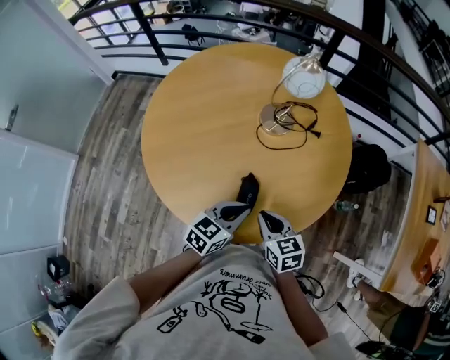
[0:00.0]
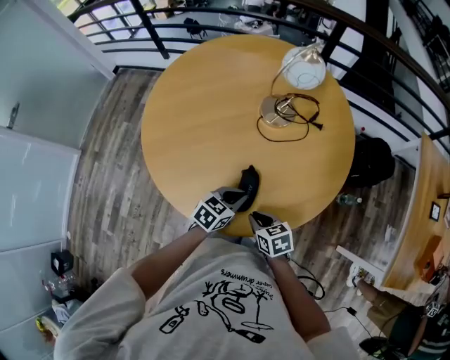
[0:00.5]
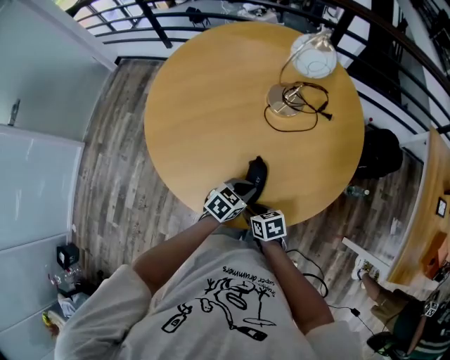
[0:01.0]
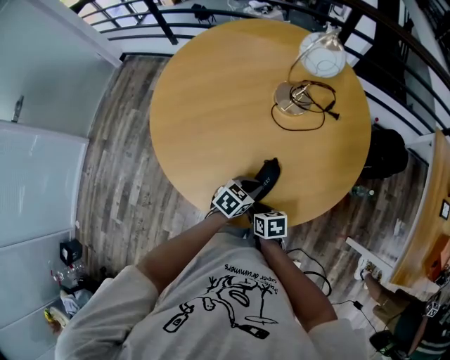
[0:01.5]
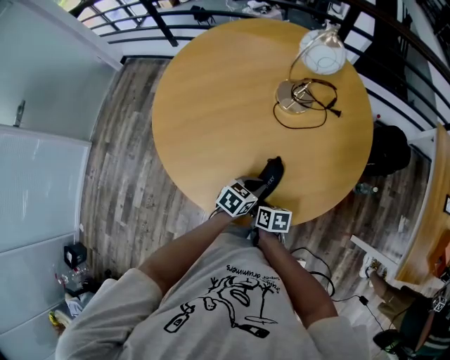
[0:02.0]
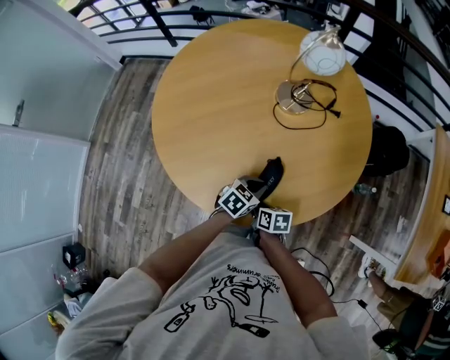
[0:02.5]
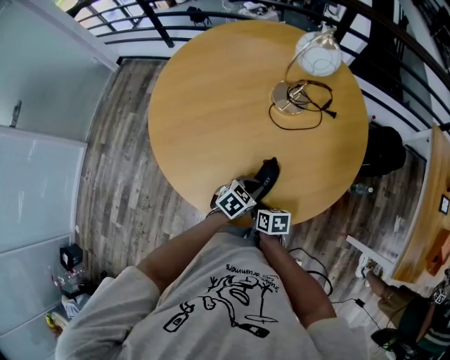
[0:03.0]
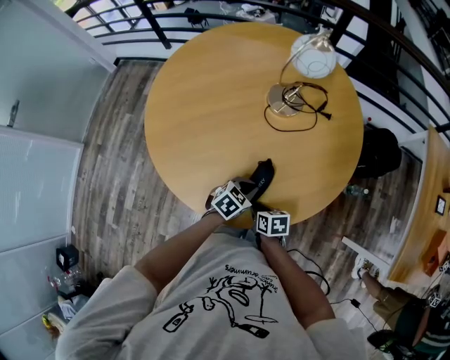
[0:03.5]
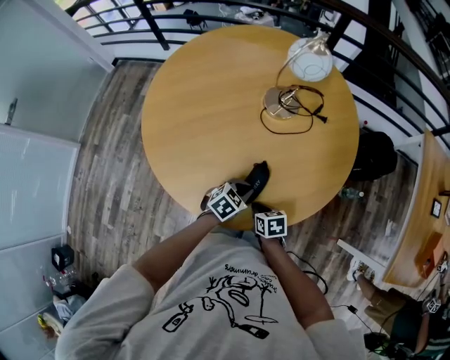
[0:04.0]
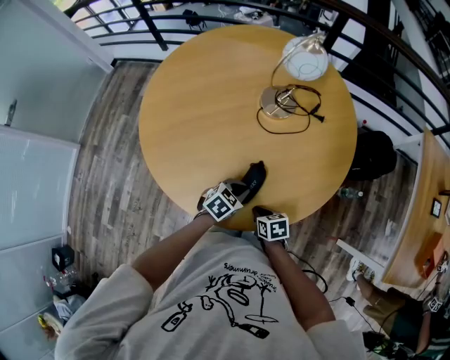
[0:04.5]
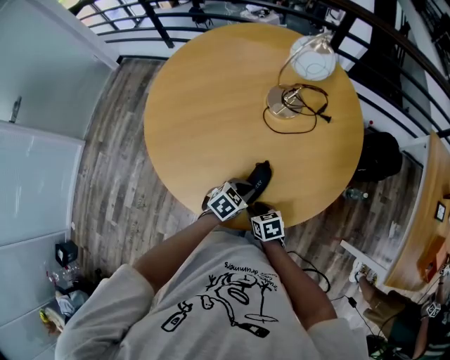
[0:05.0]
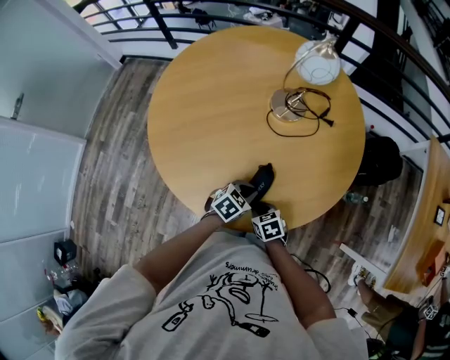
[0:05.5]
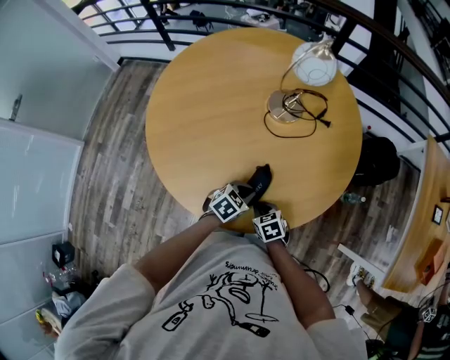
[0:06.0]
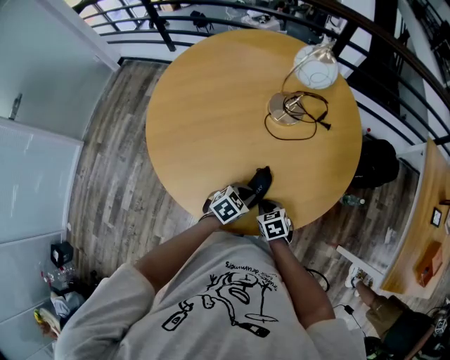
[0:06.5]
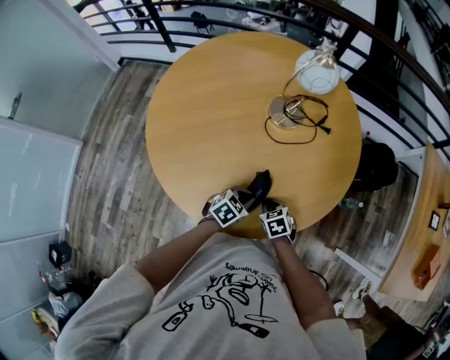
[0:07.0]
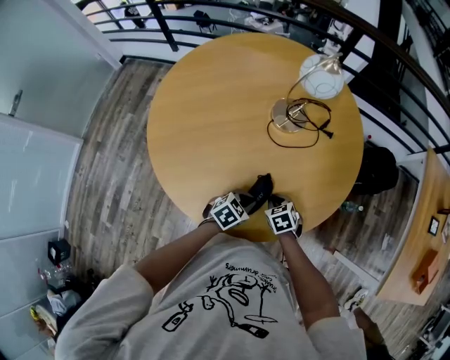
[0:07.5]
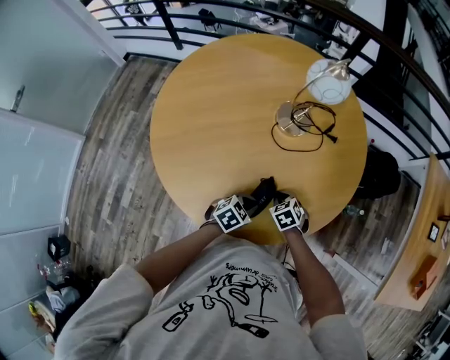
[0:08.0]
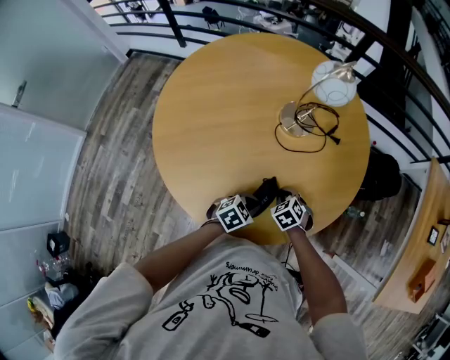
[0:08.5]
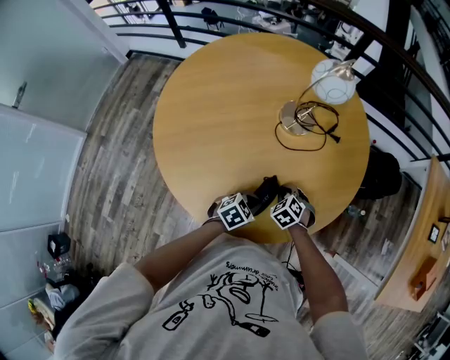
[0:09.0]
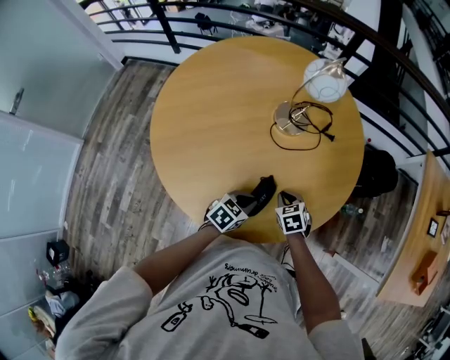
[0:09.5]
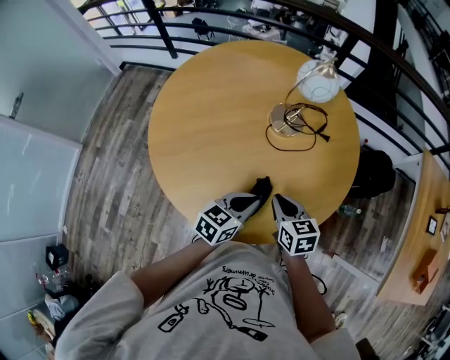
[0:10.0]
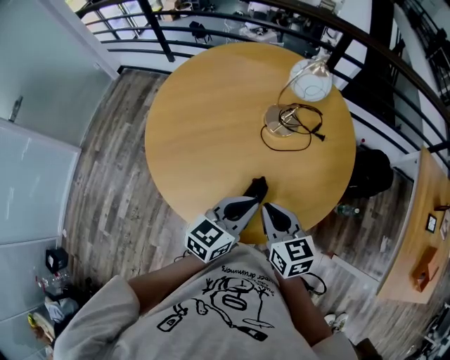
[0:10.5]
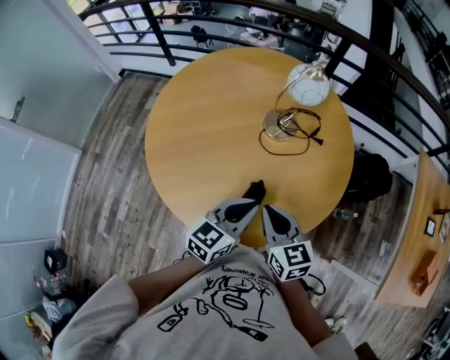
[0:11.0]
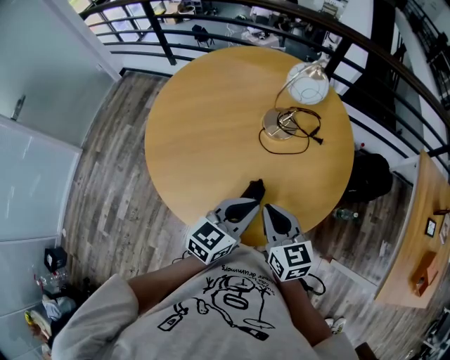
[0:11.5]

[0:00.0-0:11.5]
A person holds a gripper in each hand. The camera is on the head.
0:00.0 to 0:02.0: The two grippers go roughly 15 cm downward. The right gripper turns by some 40 degrees, and opens up.
0:02.0 to 0:04.0: The right gripper goes about 5 cm to the right, rotates roughly 20 degrees, and closes up.
0:04.0 to 0:06.0: The right gripper rotates some 20 degrees, and opens, then closes again.
0:06.0 to 0:07.5: The right gripper goes approximately 10 cm forward.
0:09.5 to 0:11.5: Both grippers move upward, some 20 cm. The left gripper swivels some 30 degrees; the right gripper tips its fingers upward by approximately 40 degrees.

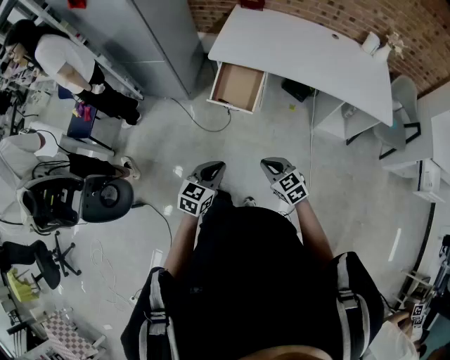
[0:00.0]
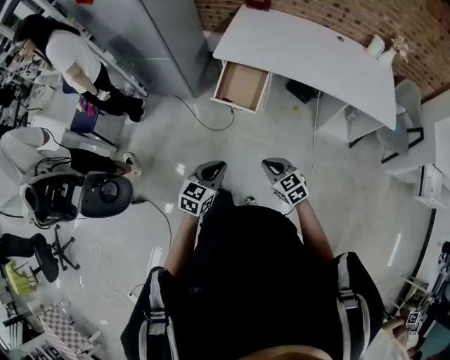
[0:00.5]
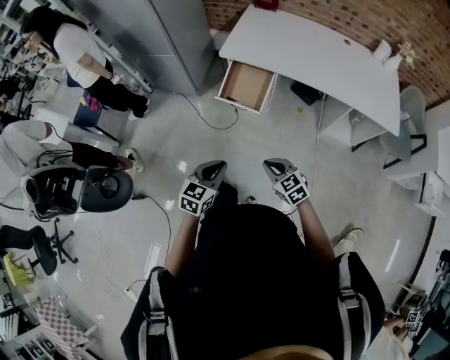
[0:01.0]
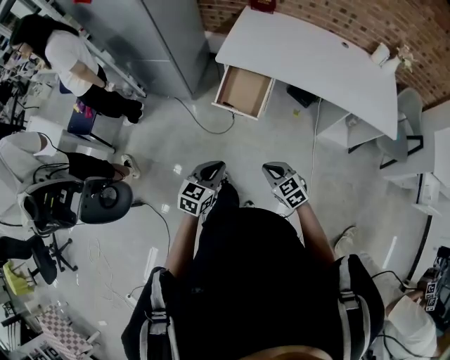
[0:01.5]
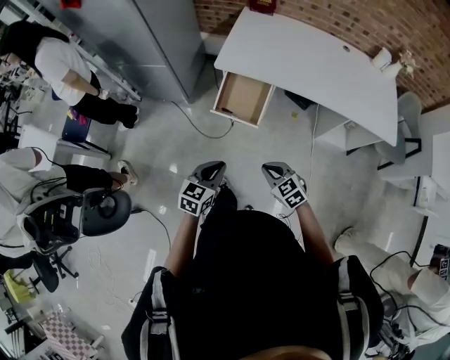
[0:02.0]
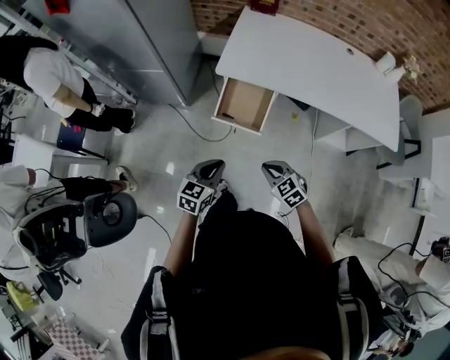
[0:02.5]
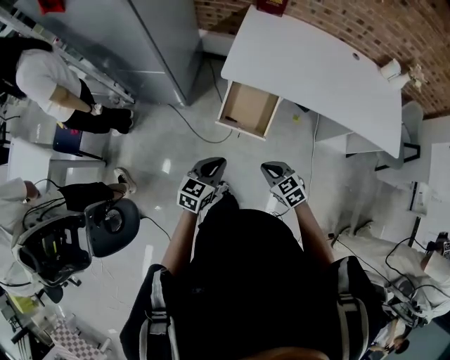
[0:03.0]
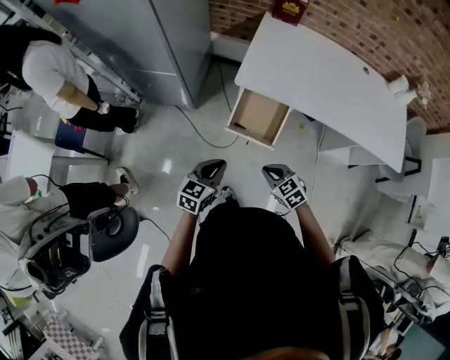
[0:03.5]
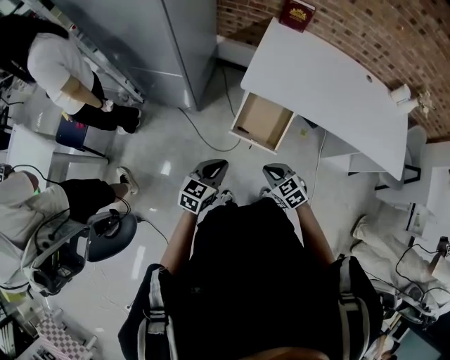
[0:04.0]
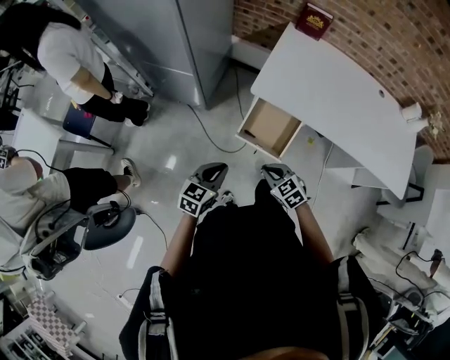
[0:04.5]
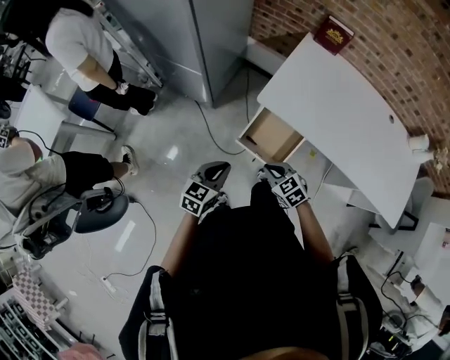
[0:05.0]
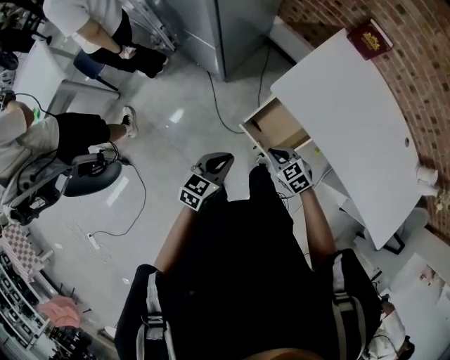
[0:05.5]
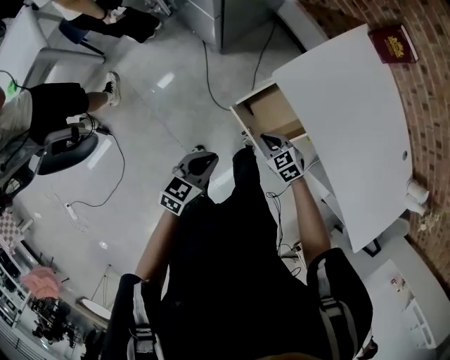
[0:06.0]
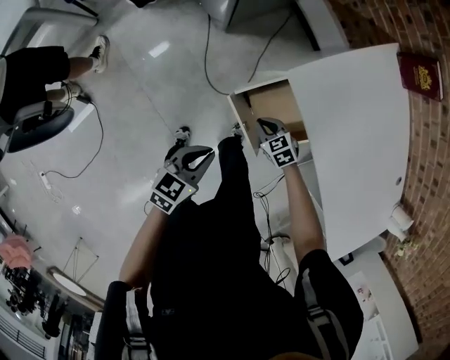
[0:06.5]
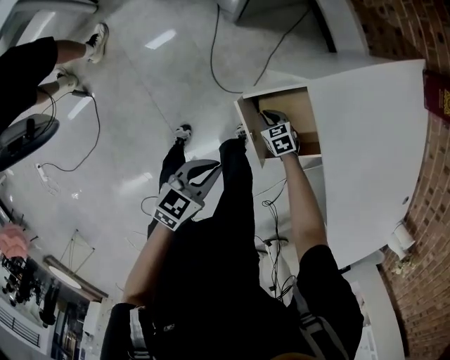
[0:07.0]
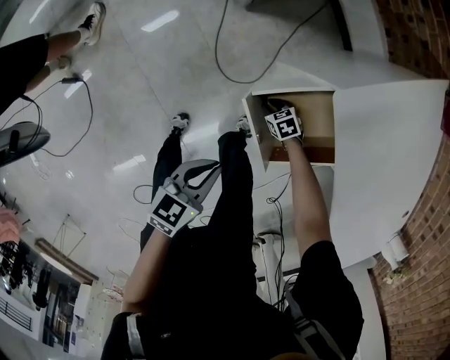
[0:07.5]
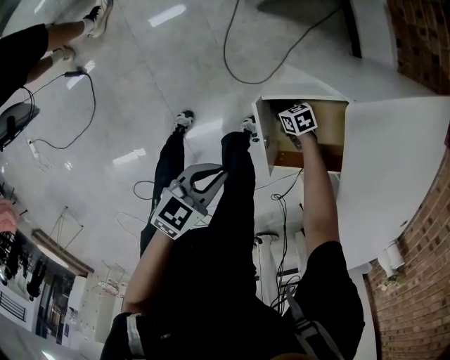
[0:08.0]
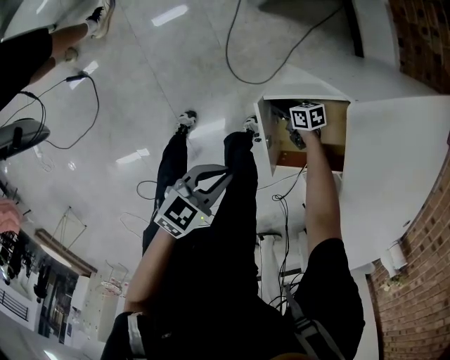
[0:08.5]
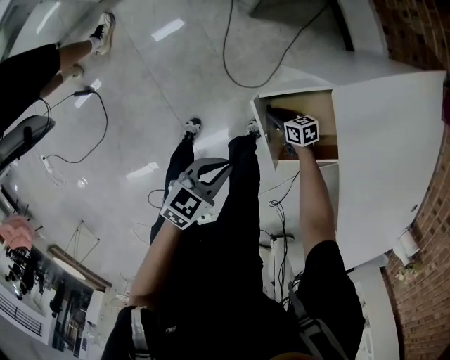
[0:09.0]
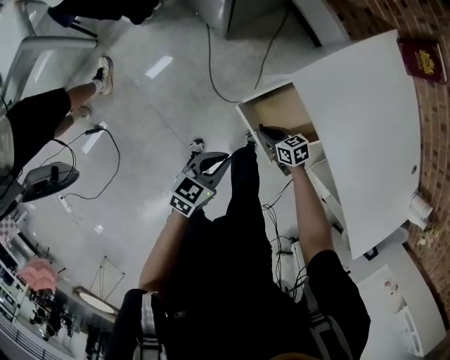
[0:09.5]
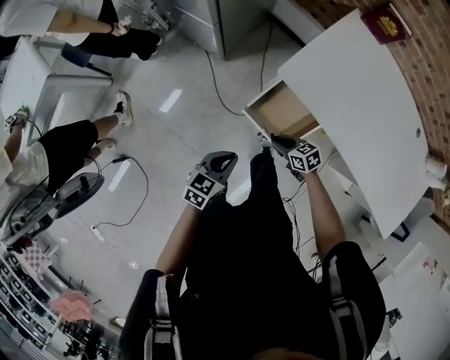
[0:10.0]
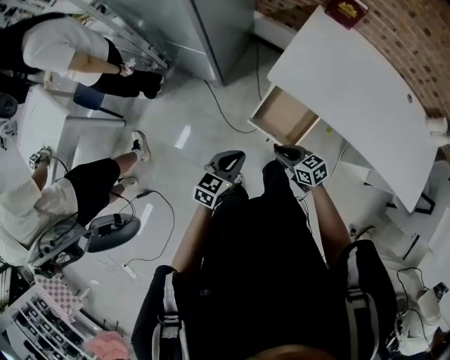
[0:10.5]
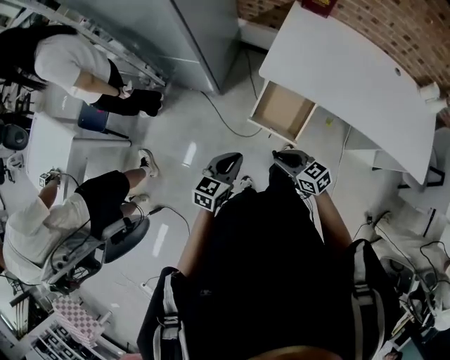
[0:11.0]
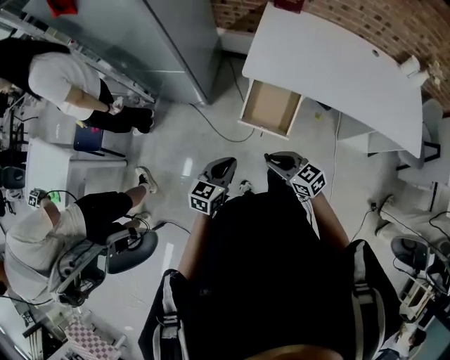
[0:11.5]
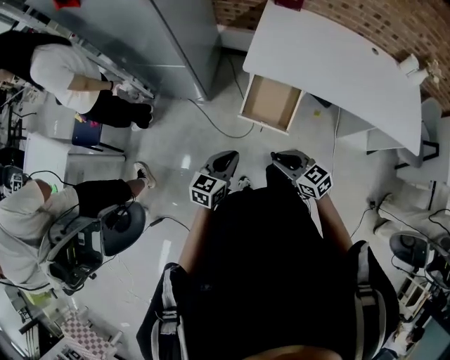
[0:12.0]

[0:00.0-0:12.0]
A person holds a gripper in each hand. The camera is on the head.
0:00.0 to 0:02.0: The grippers both shift forward by approximately 10 cm.
0:02.0 to 0:04.0: The two grippers go approximately 20 cm forward and to the left.
0:04.0 to 0:06.0: The right gripper ends up approximately 20 cm from where it was, and swivels roughly 30 degrees. The left gripper changes place by some 10 cm, and changes its angle by some 30 degrees.
0:06.0 to 0:08.0: The left gripper moves downward, about 15 cm, while the right gripper goes about 35 cm downward, and swivels roughly 30 degrees.
0:08.0 to 0:10.0: The left gripper goes some 15 cm upward, and swivels about 30 degrees. The right gripper moves upward, some 30 cm, and turns by some 40 degrees.
0:10.0 to 0:12.0: The left gripper is displaced upward, backward and to the left by roughly 15 cm. The right gripper heads upward, backward and to the left, covering some 30 cm, and rotates some 30 degrees.

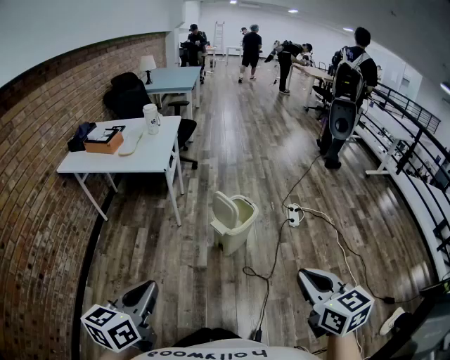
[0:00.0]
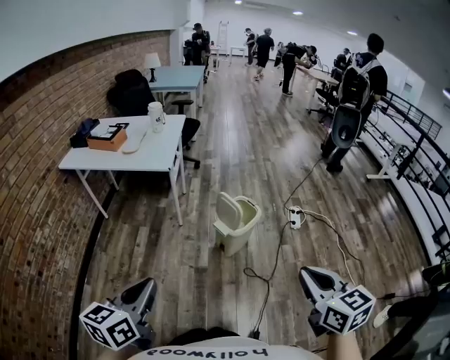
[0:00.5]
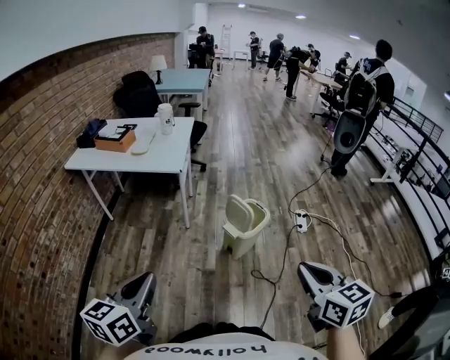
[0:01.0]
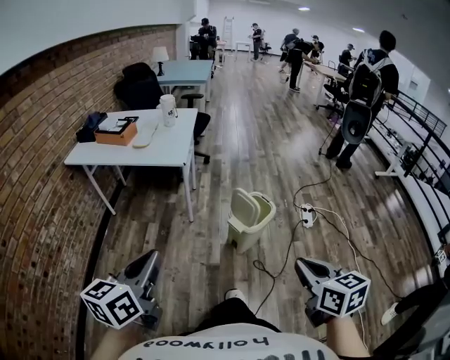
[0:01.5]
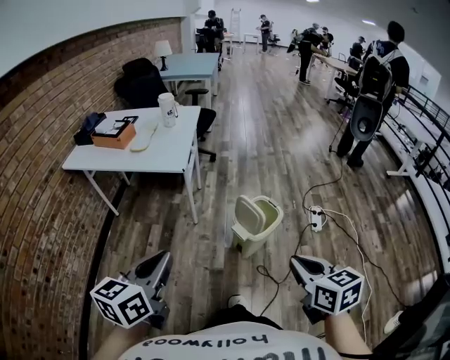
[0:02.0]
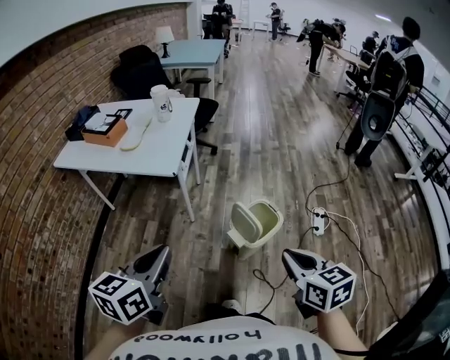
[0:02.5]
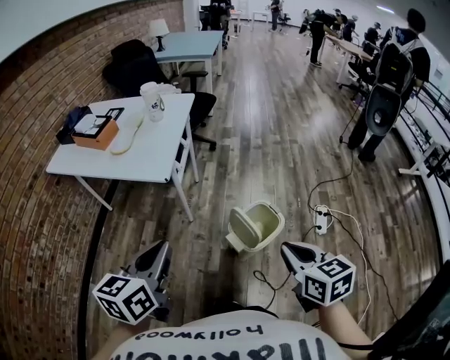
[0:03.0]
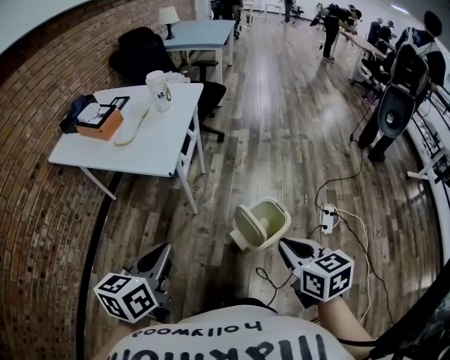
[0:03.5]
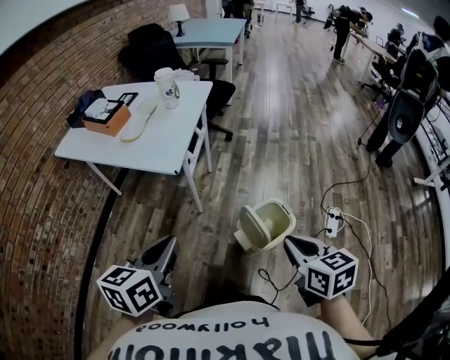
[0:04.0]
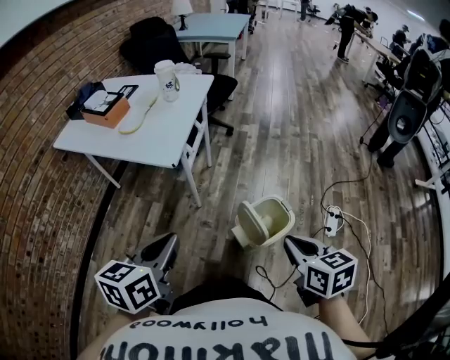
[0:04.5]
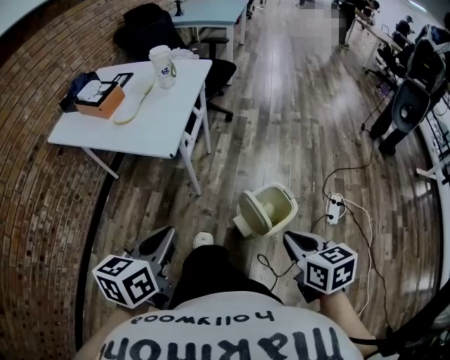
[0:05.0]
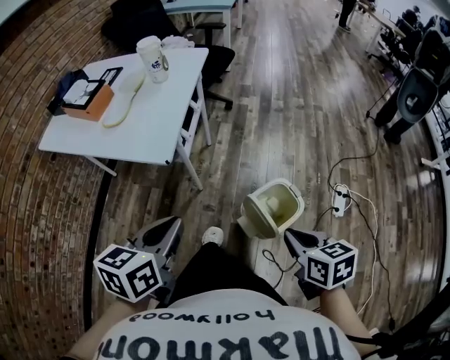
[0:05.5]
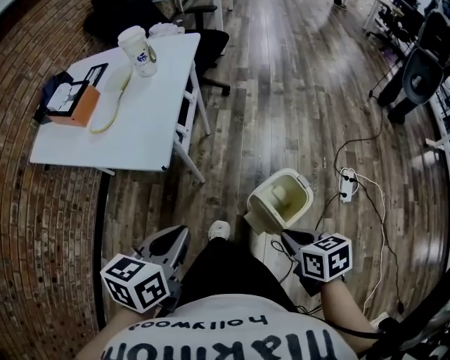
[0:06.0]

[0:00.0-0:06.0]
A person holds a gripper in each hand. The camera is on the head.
0:00.0 to 0:02.0: The right gripper moves forward, to the left and downward, about 20 cm. The left gripper shifts some 15 cm forward.
0:02.0 to 0:04.0: Both grippers move forward, some 20 cm.
0:04.0 to 0:06.0: The right gripper shifts about 15 cm downward and forward, and swivels approximately 20 degrees. The left gripper heads forward and downward, covering approximately 15 cm.
